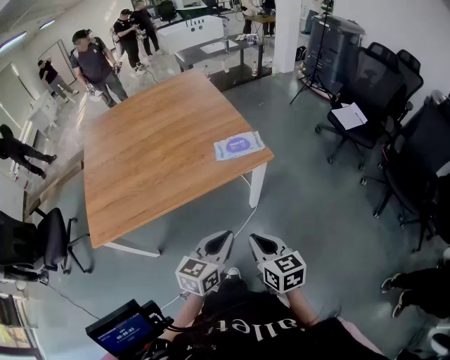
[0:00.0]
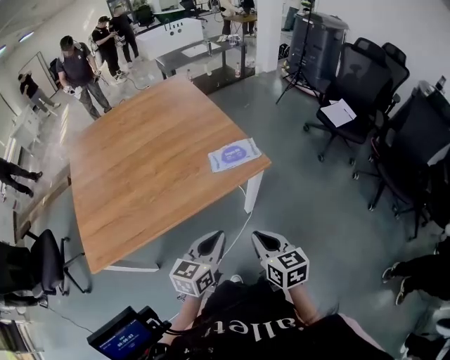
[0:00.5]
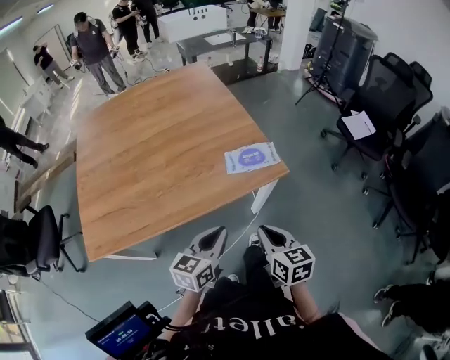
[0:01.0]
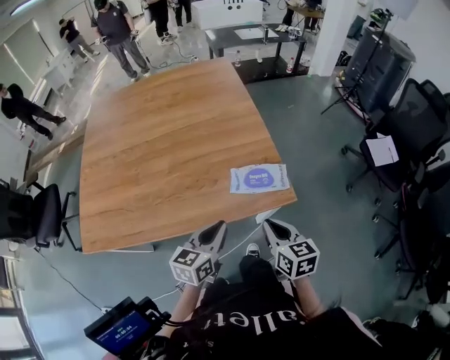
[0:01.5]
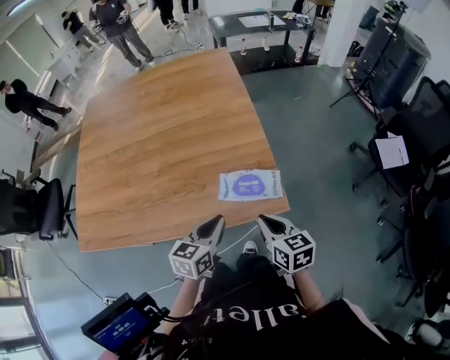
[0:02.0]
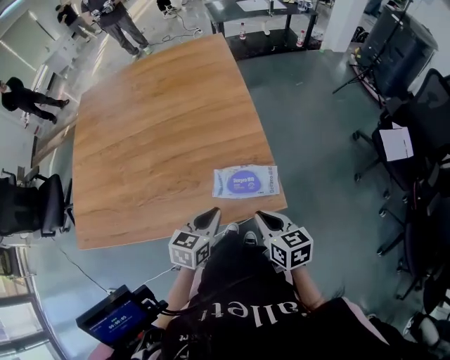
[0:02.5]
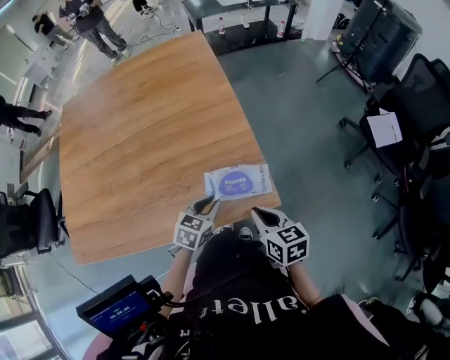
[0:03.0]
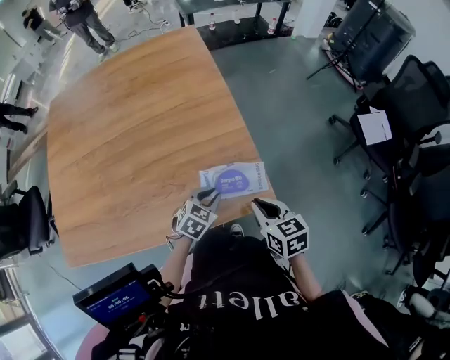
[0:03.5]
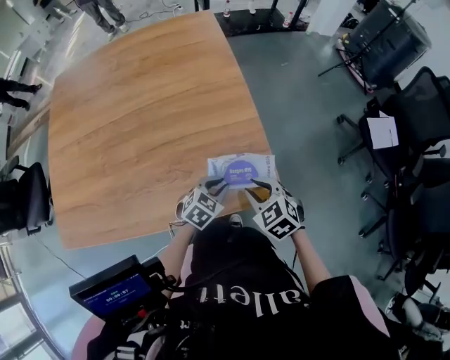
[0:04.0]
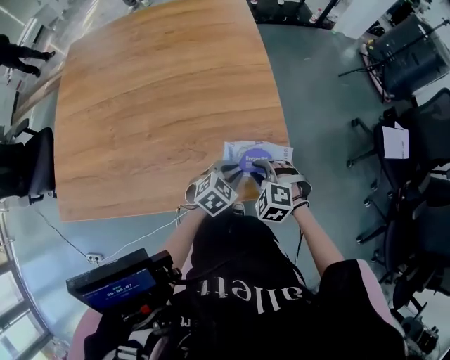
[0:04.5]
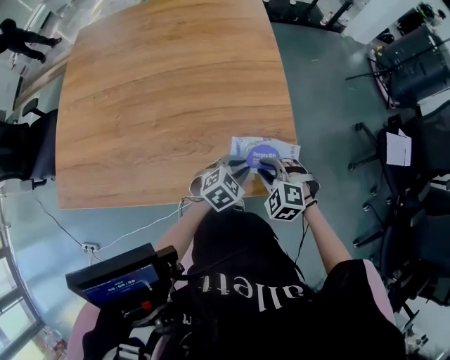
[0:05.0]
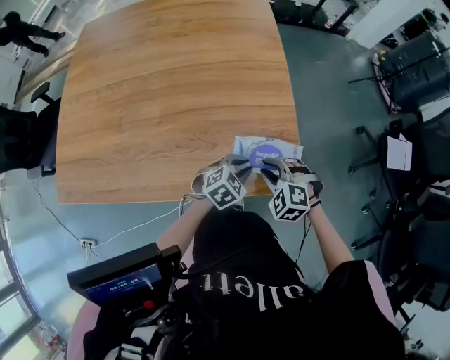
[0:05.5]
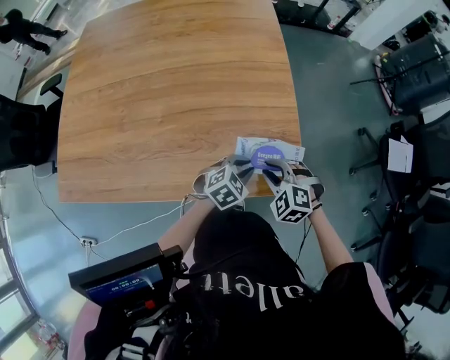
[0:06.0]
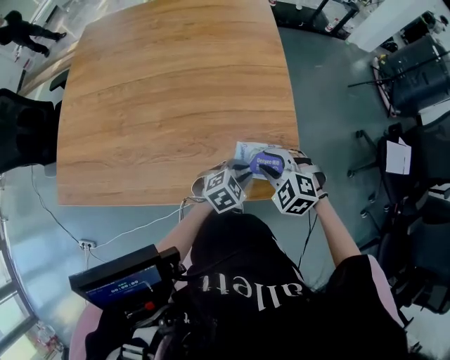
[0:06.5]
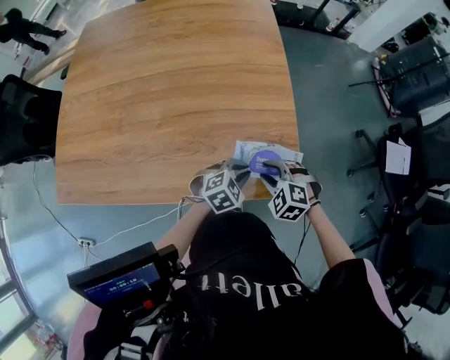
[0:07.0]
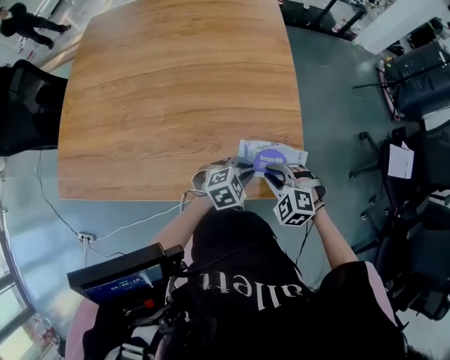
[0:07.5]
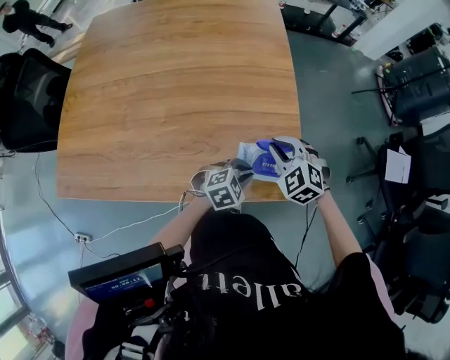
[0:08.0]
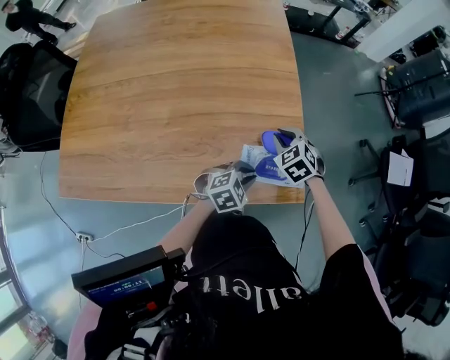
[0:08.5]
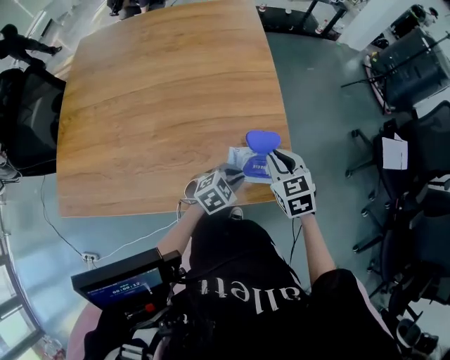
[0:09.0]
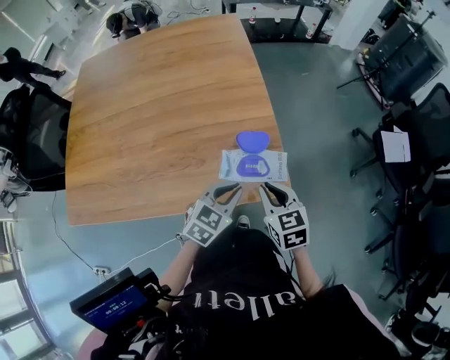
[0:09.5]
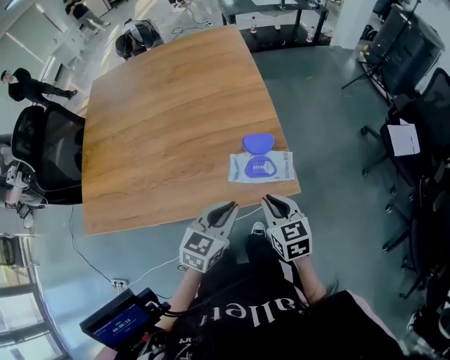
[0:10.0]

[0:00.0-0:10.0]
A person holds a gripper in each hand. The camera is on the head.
0.0 to 2.0 s: Both grippers travel together forward, about 35 cm. The left gripper rotates roughly 20 degrees.
2.0 to 4.0 s: The left gripper is displaced downward and forward by about 15 cm, and changes its angle by some 40 degrees; the right gripper travels forward by about 10 cm, and turns by about 40 degrees.
4.0 to 6.0 s: The right gripper moves downward, roughly 5 cm, and turns by roughly 40 degrees.
6.0 to 8.0 s: The right gripper moves forward and upward, about 10 cm.
8.0 to 10.0 s: The left gripper heads upward and backward, covering roughly 20 cm, and changes its angle by about 40 degrees; the right gripper is displaced backward and to the right by some 20 cm, and twists roughly 50 degrees clockwise, seen from behind.

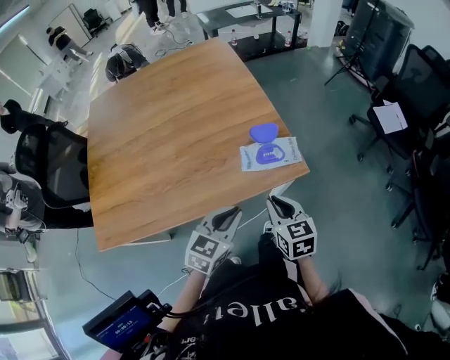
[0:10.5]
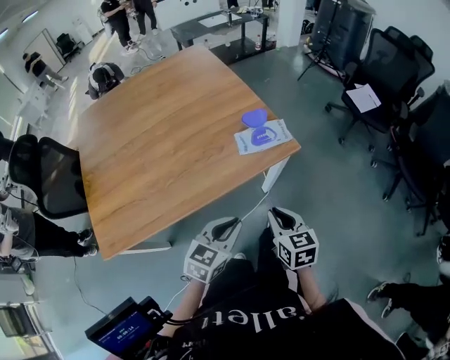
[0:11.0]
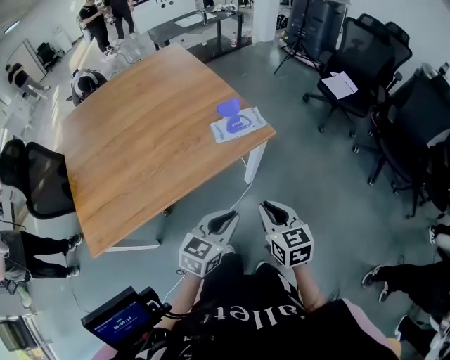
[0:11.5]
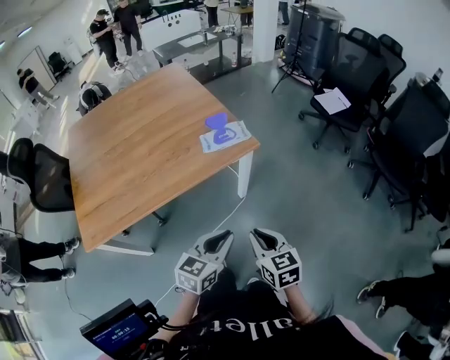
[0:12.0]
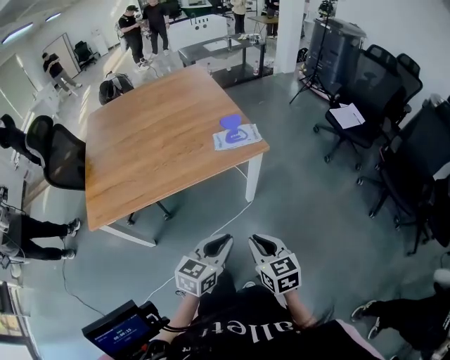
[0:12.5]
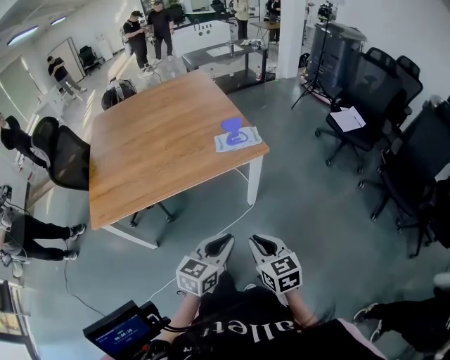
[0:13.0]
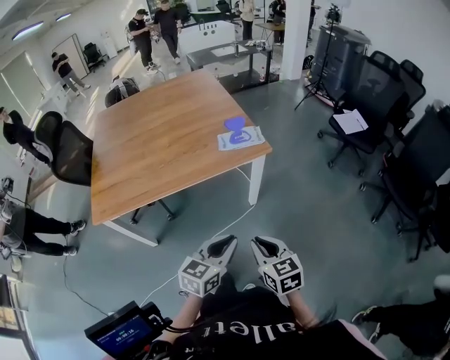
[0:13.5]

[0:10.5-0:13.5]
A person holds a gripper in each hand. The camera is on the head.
10.5 to 12.0 s: The right gripper travels backward by about 30 cm. The left gripper travels backward and to the right by about 25 cm.
12.0 to 13.5 s: Both grippers move backward, roughly 5 cm.

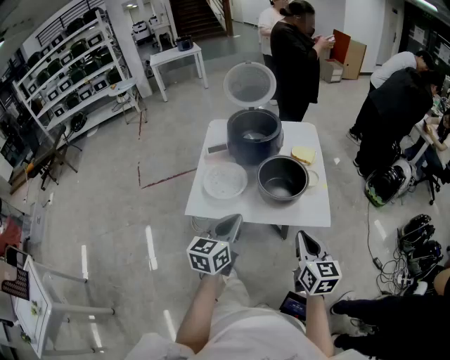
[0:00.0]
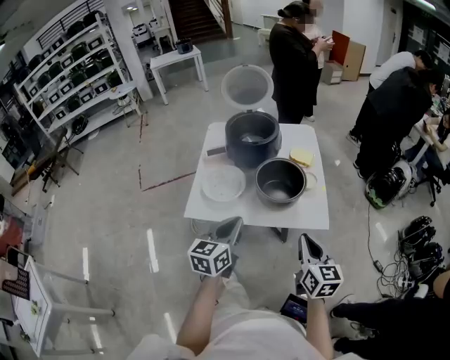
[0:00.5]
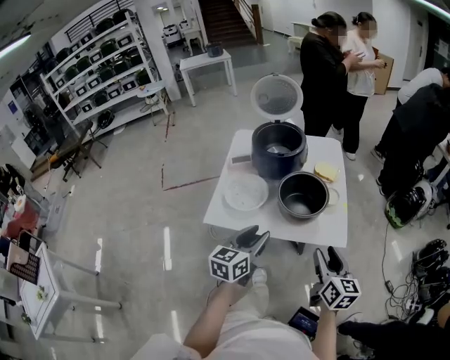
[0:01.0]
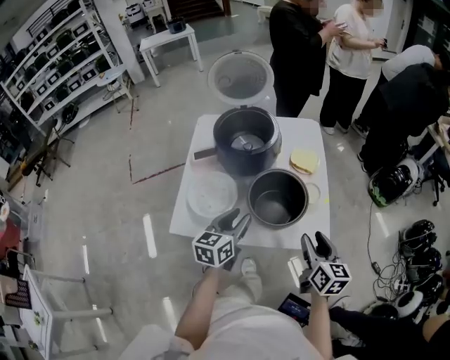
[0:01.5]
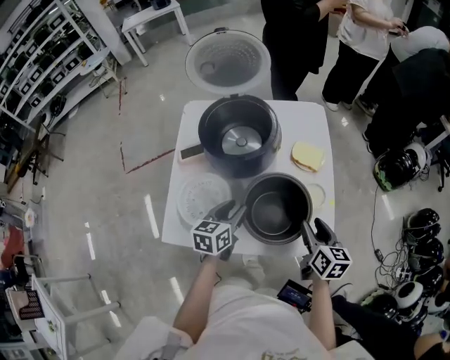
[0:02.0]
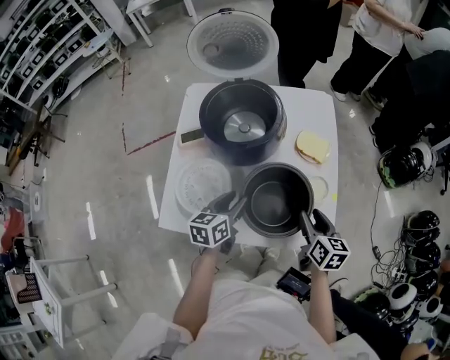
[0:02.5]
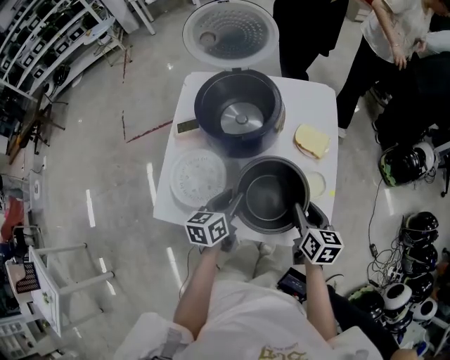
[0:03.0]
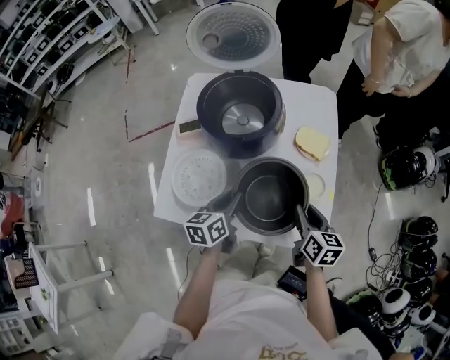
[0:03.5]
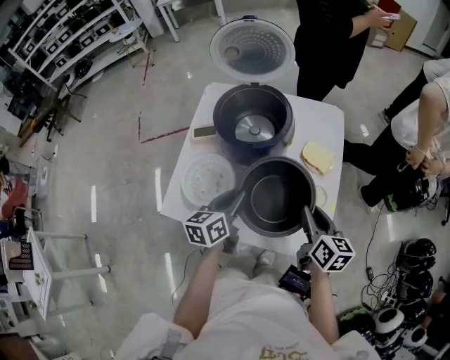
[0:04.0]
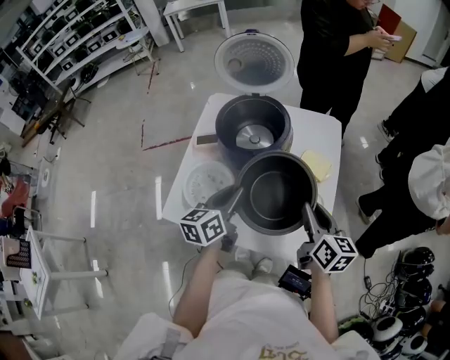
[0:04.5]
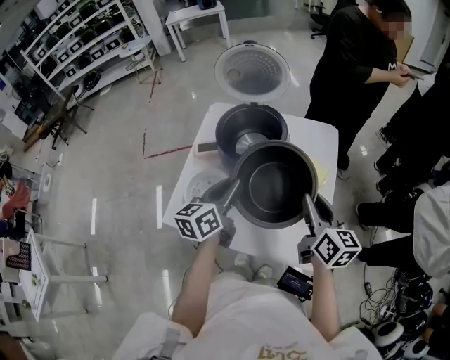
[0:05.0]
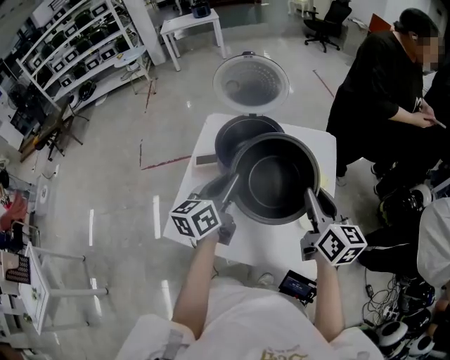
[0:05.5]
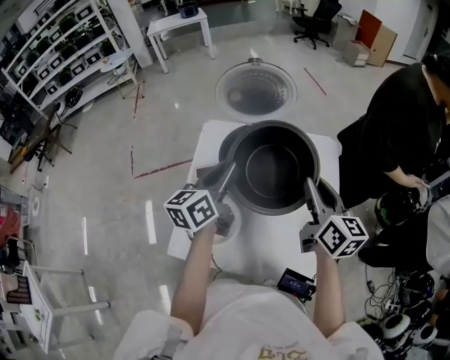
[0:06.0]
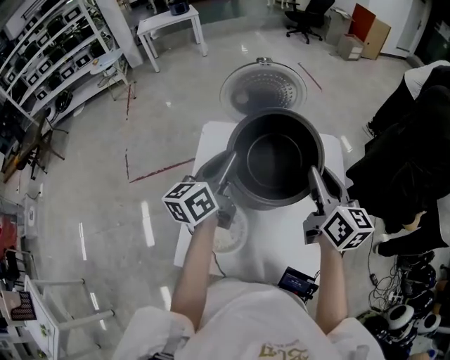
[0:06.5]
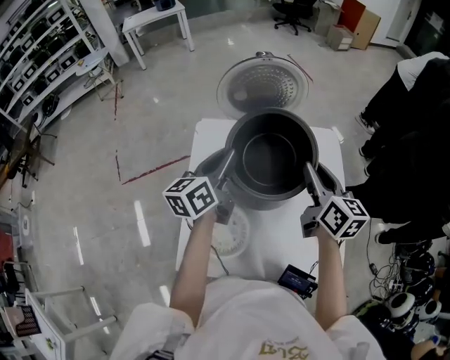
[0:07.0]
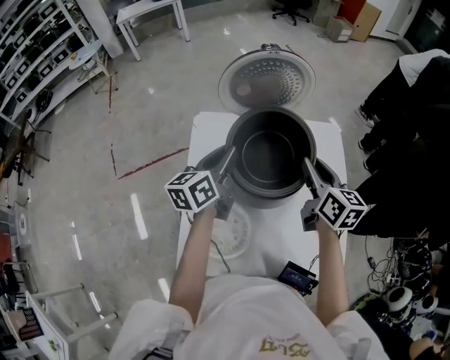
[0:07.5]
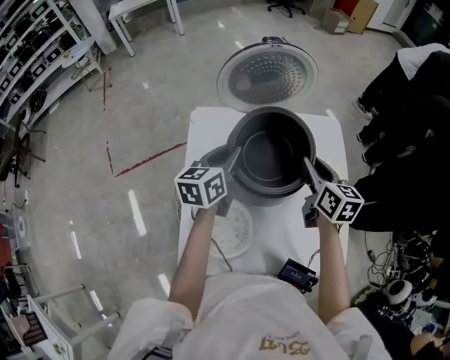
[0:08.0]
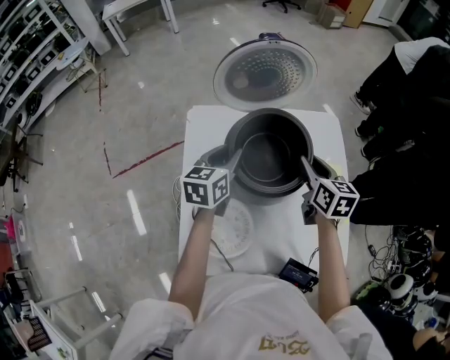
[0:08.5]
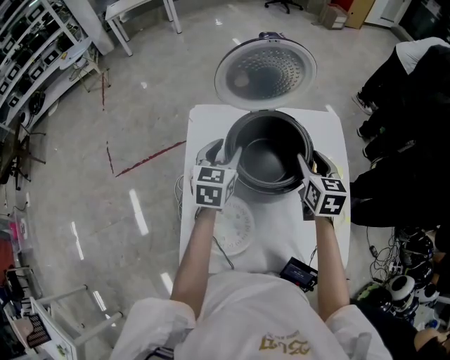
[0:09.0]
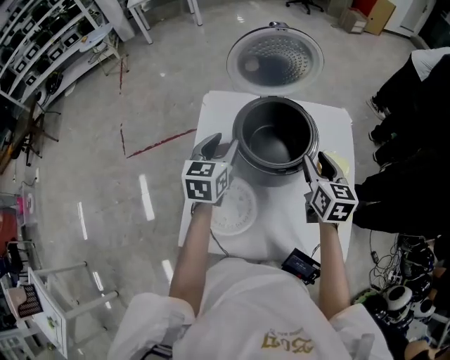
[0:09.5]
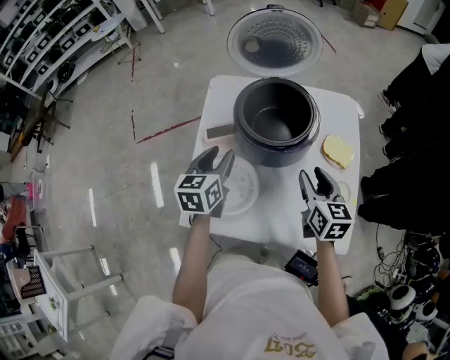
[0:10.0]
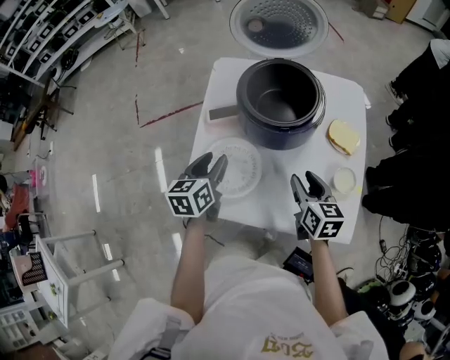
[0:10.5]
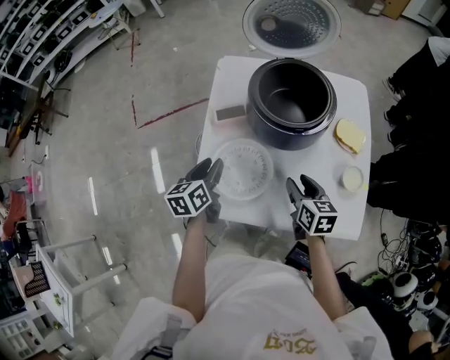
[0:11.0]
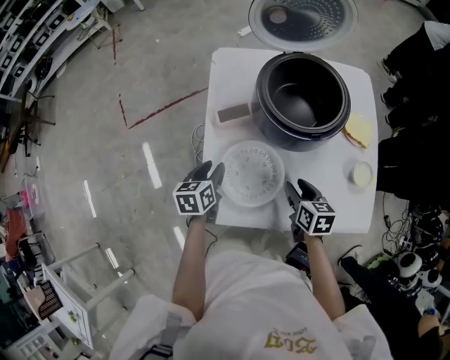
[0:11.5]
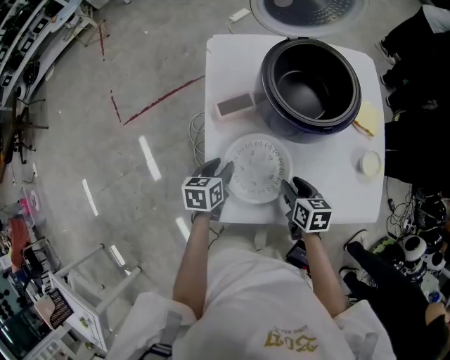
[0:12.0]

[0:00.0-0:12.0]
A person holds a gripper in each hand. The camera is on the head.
0.0 to 2.0 s: Both grippers move forward and downward, roughly 30 cm. The left gripper opens its fingers. The right gripper rotates approximately 20 degrees, and opens up.
2.0 to 4.0 s: The right gripper shifts by some 5 cm, and closes.
4.0 to 6.0 s: The grippers both shift upward and forward by some 20 cm.
6.0 to 8.0 s: The right gripper goes some 15 cm downward, forward and to the left. Meanwhile the left gripper travels forward, downward and to the left by approximately 15 cm.
8.0 to 10.0 s: The grippers both shift backward by some 15 cm.
10.0 to 12.0 s: The right gripper goes approximately 25 cm downward, to the left and backward, and rotates about 30 degrees. Meanwhile the left gripper is displaced downward and to the left by approximately 20 cm, and swivels some 30 degrees.

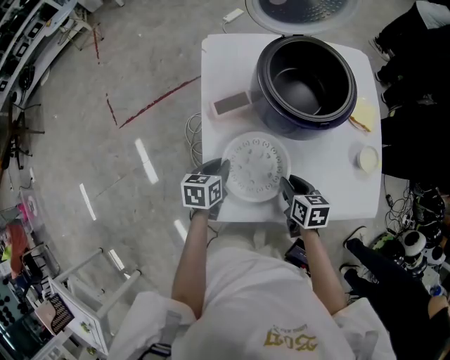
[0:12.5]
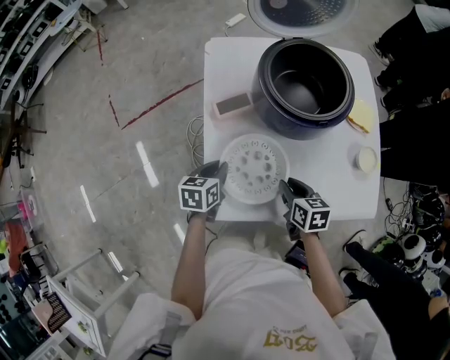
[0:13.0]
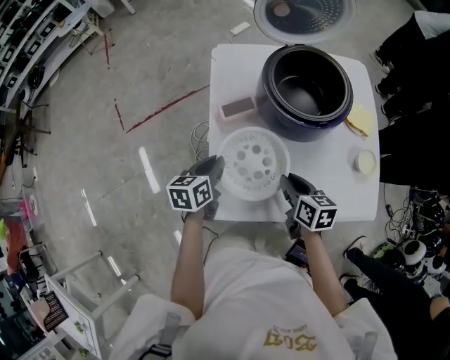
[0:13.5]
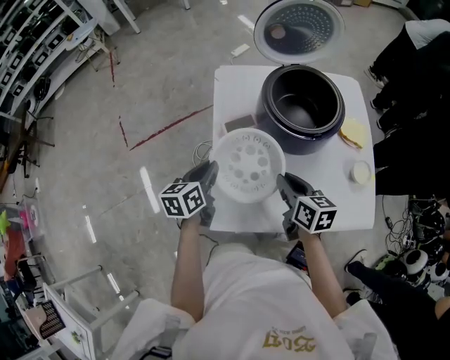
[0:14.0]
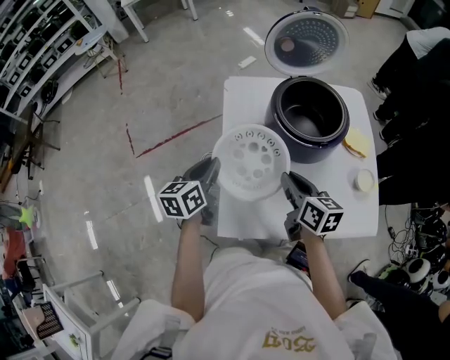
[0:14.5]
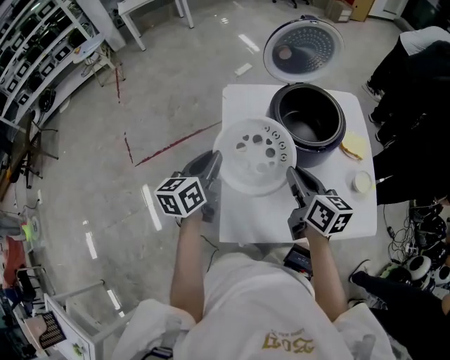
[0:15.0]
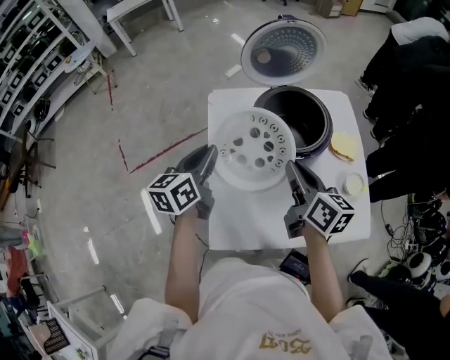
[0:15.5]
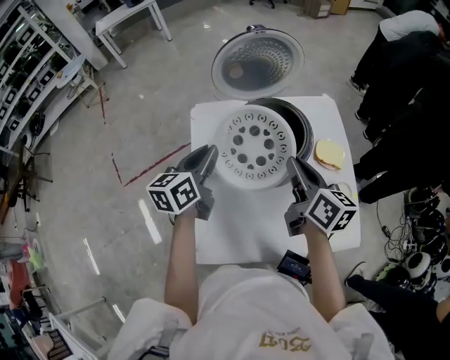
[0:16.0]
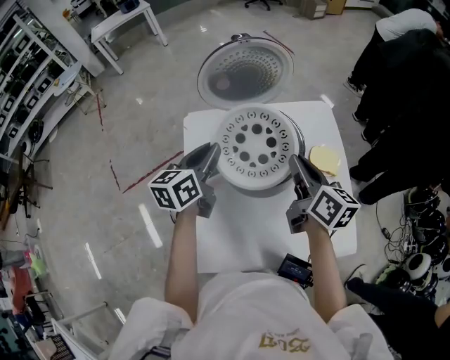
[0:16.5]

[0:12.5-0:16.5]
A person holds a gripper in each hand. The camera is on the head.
12.5 to 14.5 s: Both grippers travel together upward, roughly 15 cm. The right gripper changes its angle by roughly 20 degrees. The left gripper swivels roughly 30 degrees.
14.5 to 16.5 s: Both grippers move to the right, forward and upward, roughly 25 cm.
